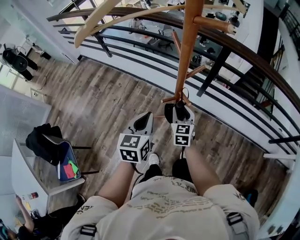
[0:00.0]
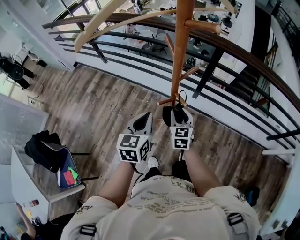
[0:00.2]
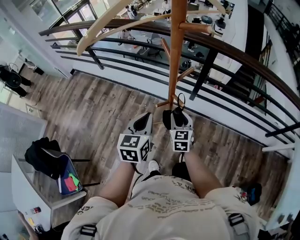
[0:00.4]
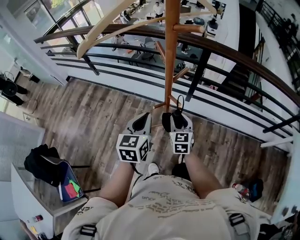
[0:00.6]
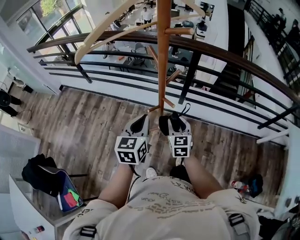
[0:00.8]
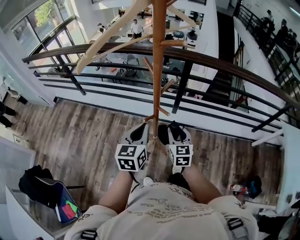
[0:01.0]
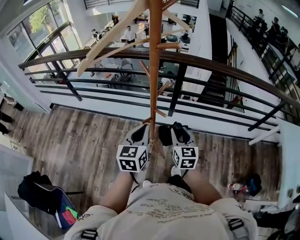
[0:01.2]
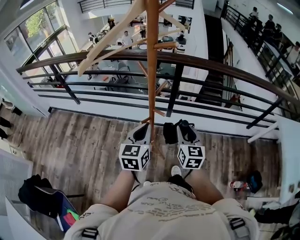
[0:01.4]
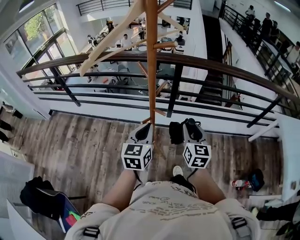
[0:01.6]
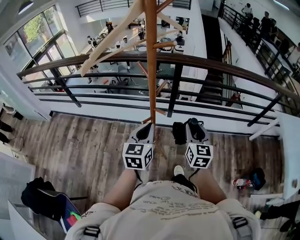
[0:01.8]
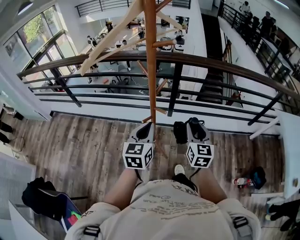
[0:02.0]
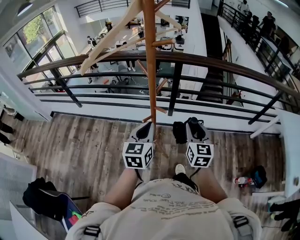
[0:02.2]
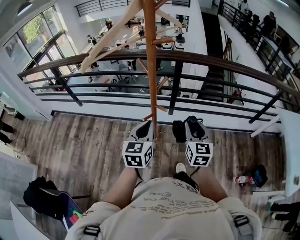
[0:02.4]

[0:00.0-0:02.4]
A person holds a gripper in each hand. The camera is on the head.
0:00.0 to 0:01.2: The left gripper is displaced upward by about 5 cm, while the right gripper moves upward, backward and to the right, roughly 15 cm.
0:01.2 to 0:02.4: The right gripper goes about 5 cm to the right and upward.

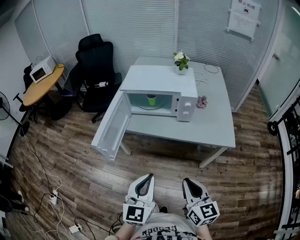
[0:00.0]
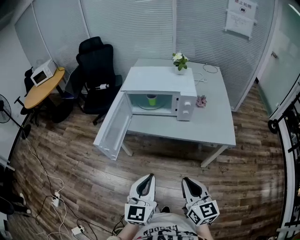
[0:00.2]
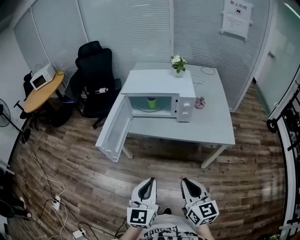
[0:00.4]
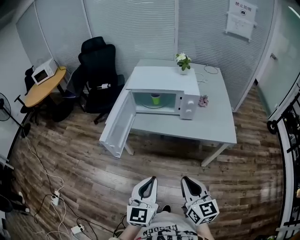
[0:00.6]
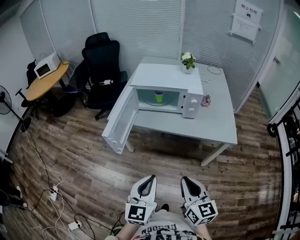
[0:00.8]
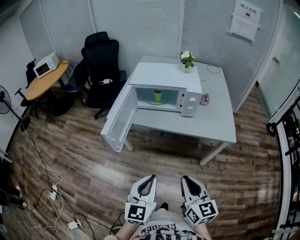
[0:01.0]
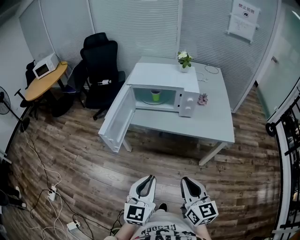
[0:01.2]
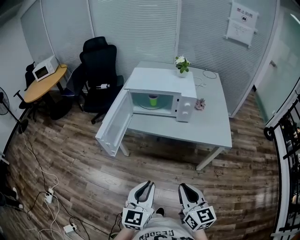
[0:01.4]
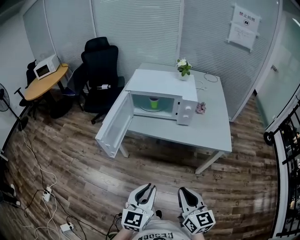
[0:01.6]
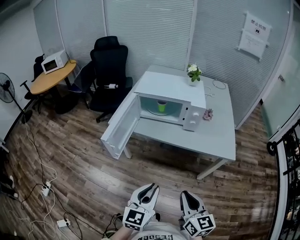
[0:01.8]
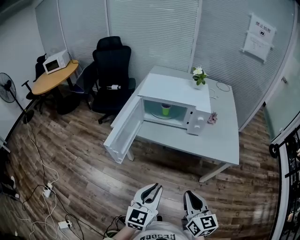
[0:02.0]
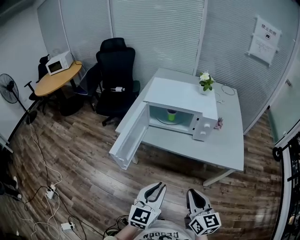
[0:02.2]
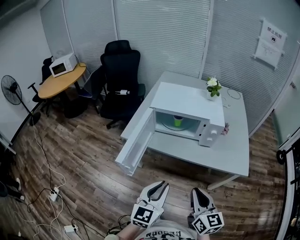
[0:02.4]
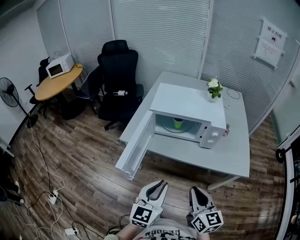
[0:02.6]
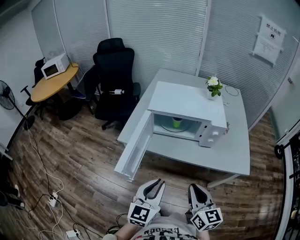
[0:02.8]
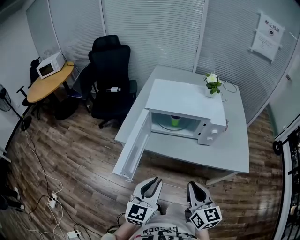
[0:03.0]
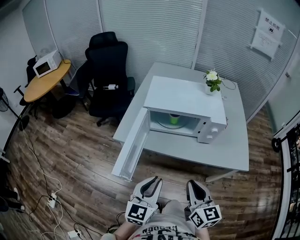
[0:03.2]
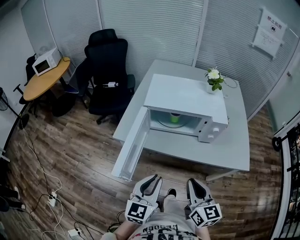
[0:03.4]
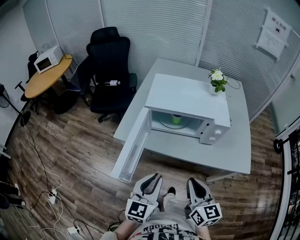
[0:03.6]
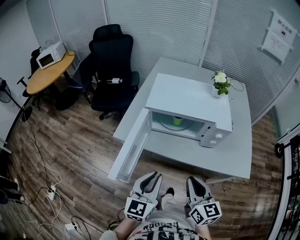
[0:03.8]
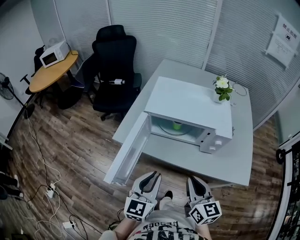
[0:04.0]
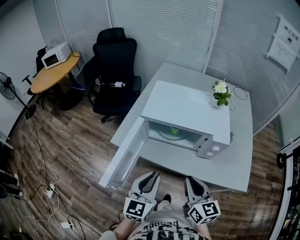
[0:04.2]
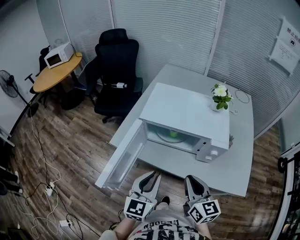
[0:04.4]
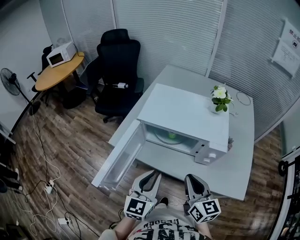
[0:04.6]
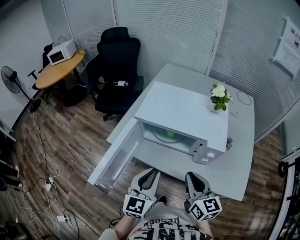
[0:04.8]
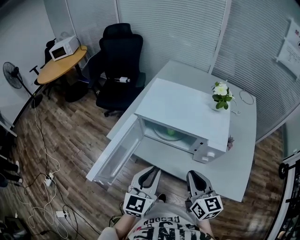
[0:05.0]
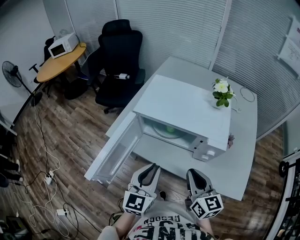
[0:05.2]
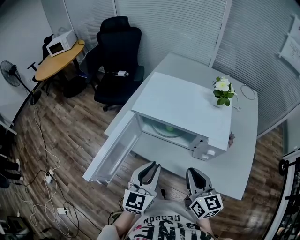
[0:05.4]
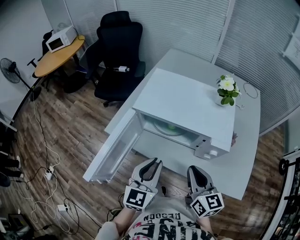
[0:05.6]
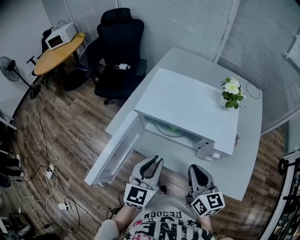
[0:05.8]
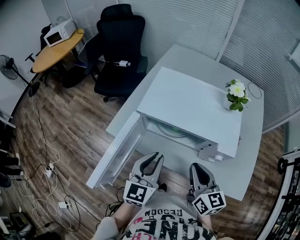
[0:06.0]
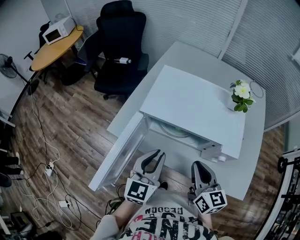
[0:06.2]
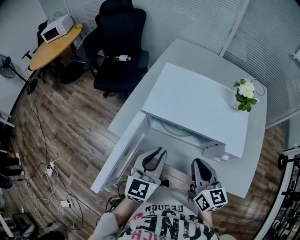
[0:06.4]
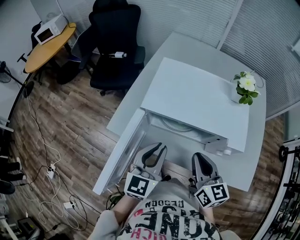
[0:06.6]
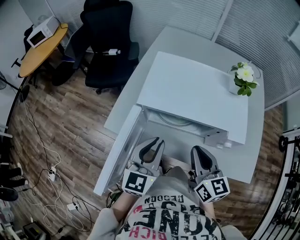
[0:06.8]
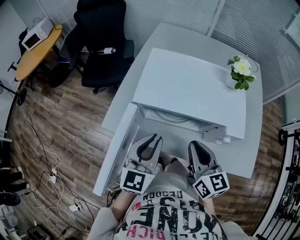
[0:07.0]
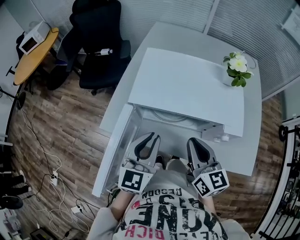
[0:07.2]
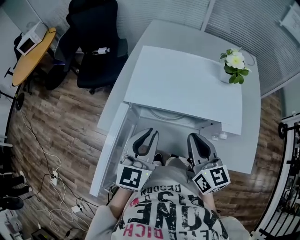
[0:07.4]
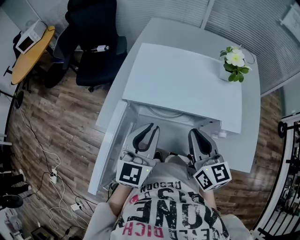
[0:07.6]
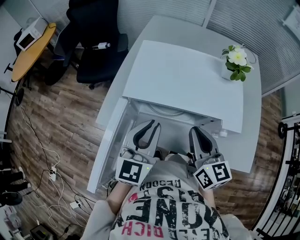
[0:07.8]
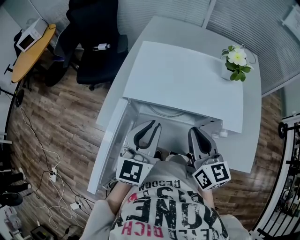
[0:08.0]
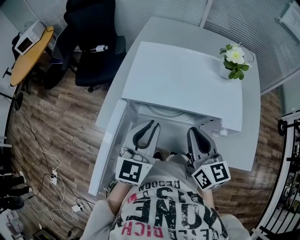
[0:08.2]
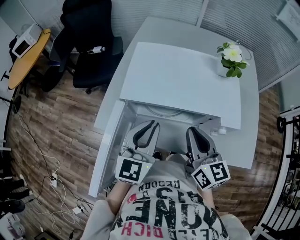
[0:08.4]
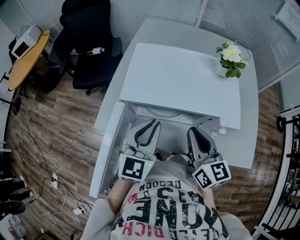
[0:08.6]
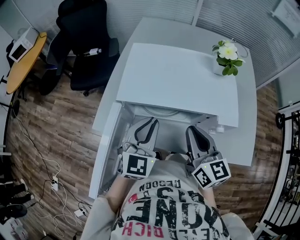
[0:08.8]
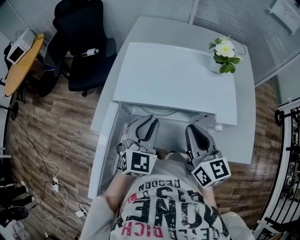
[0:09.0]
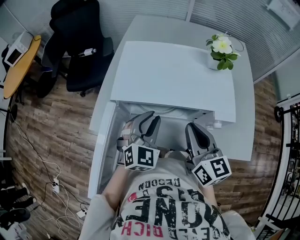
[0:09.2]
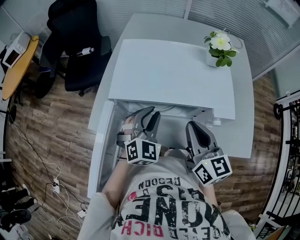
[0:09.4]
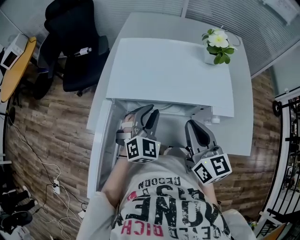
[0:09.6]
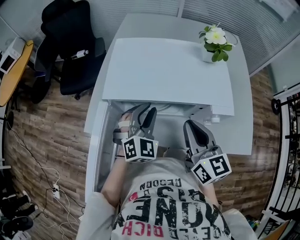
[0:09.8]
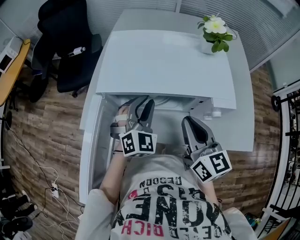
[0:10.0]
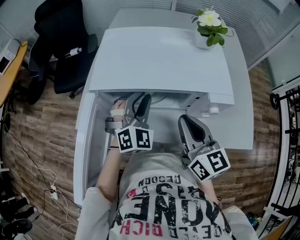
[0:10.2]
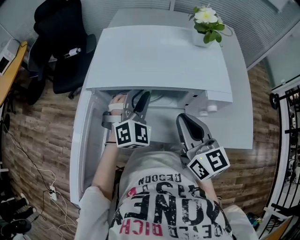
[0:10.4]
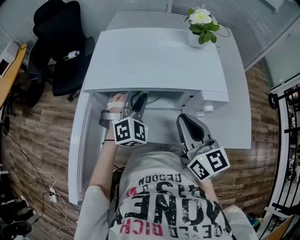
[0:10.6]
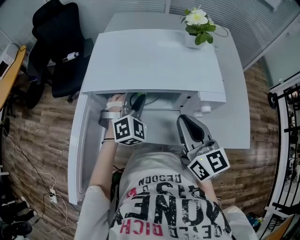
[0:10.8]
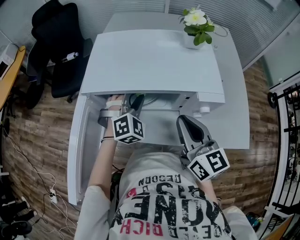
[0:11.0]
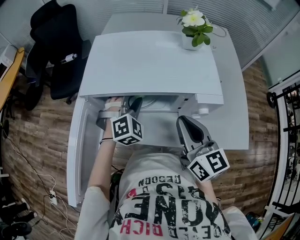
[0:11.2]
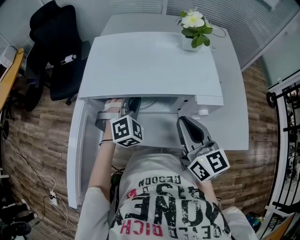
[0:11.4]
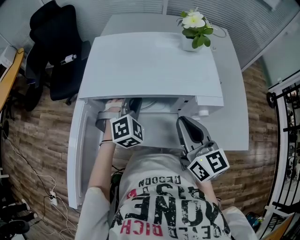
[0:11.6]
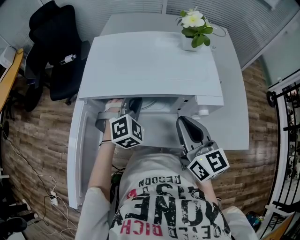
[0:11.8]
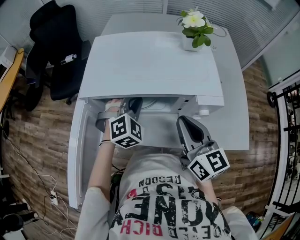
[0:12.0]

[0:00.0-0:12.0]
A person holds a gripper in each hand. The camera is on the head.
0:00.0 to 0:01.6: The grippers both shift backward by roughly 5 cm.
0:01.6 to 0:03.0: Both grippers travel together forward and to the left, roughly 20 cm.
0:03.0 to 0:04.4: Both grippers move forward, roughly 15 cm.
0:04.4 to 0:06.0: Both grippers move forward, about 10 cm.
0:06.0 to 0:07.6: The two grippers go approximately 5 cm forward.
0:07.6 to 0:09.0: The left gripper ends up roughly 5 cm from where it was, and changes its angle by roughly 30 degrees.
0:09.0 to 0:10.4: The left gripper travels forward and downward by roughly 10 cm, and changes its angle by about 30 degrees.
0:10.4 to 0:12.0: The grippers make only small movements.

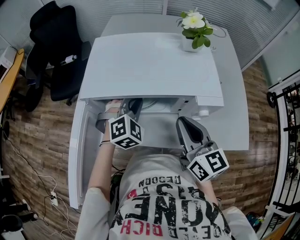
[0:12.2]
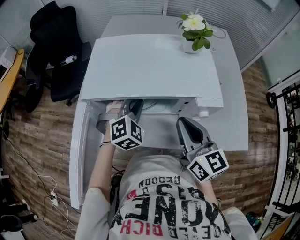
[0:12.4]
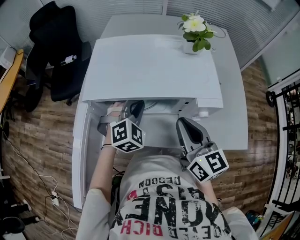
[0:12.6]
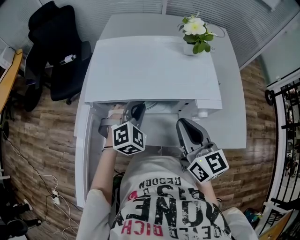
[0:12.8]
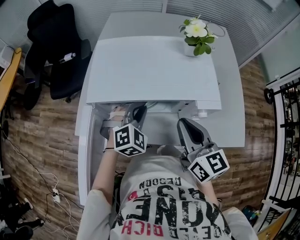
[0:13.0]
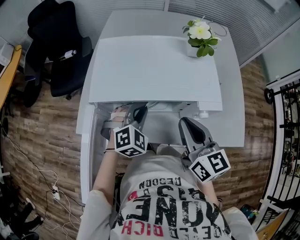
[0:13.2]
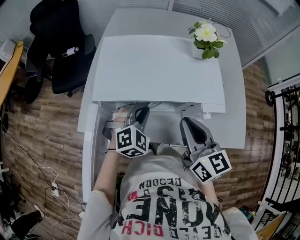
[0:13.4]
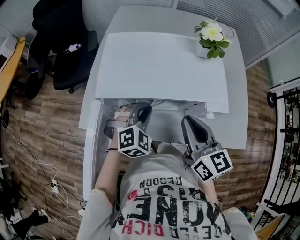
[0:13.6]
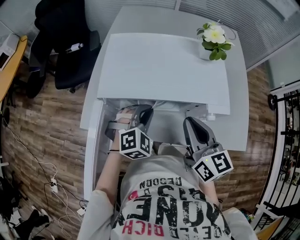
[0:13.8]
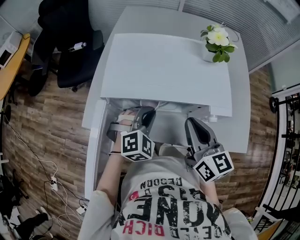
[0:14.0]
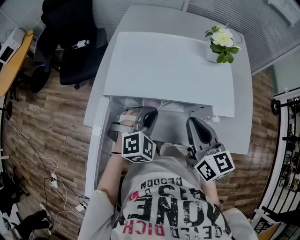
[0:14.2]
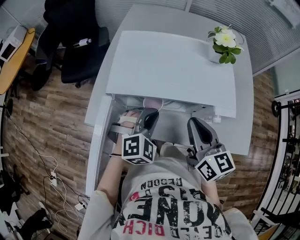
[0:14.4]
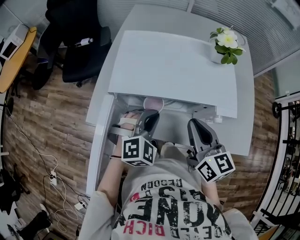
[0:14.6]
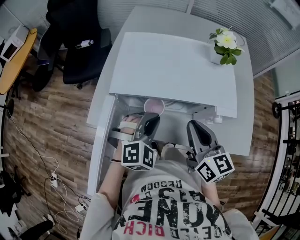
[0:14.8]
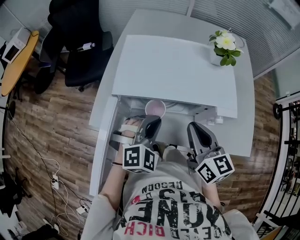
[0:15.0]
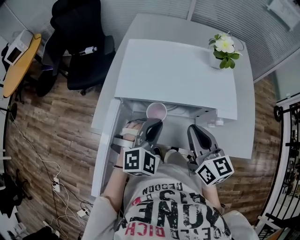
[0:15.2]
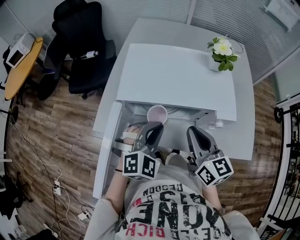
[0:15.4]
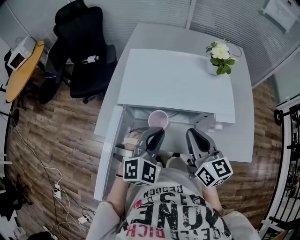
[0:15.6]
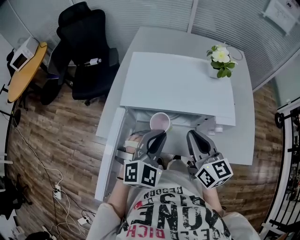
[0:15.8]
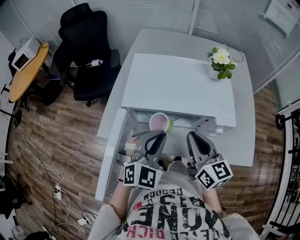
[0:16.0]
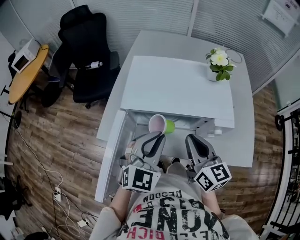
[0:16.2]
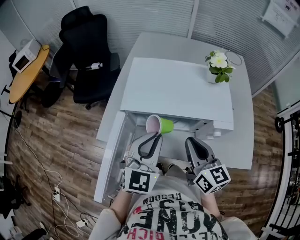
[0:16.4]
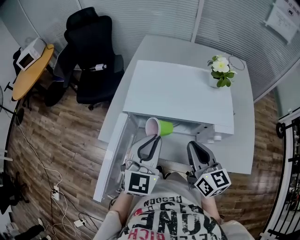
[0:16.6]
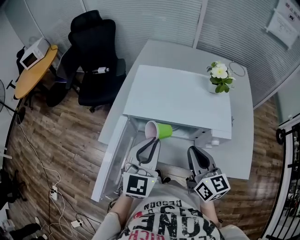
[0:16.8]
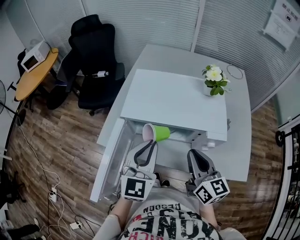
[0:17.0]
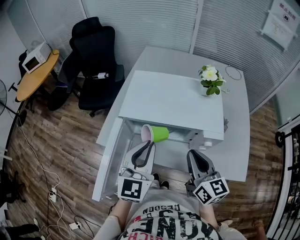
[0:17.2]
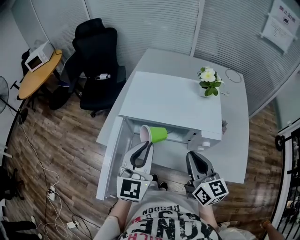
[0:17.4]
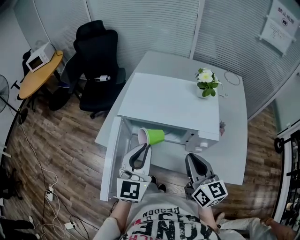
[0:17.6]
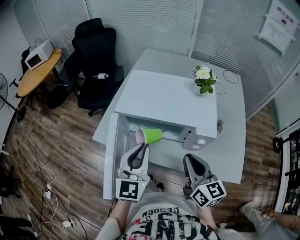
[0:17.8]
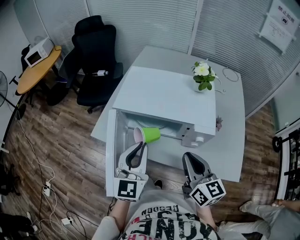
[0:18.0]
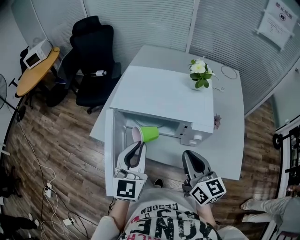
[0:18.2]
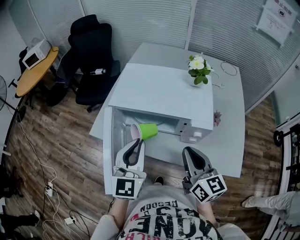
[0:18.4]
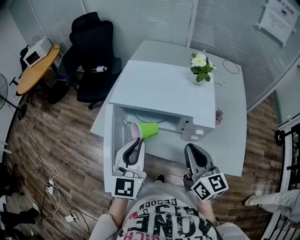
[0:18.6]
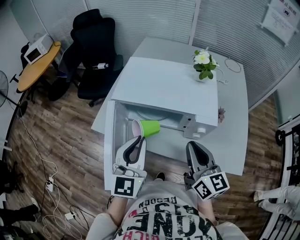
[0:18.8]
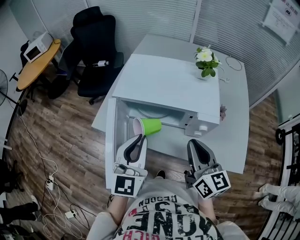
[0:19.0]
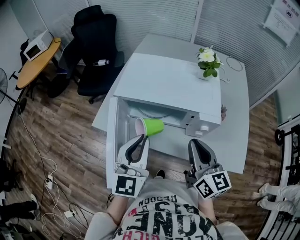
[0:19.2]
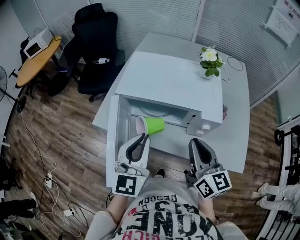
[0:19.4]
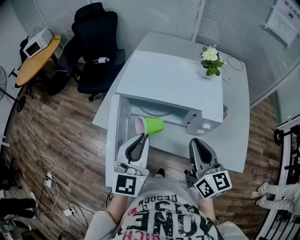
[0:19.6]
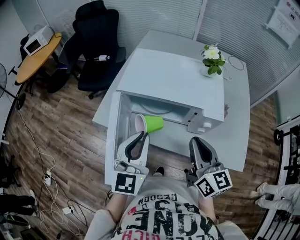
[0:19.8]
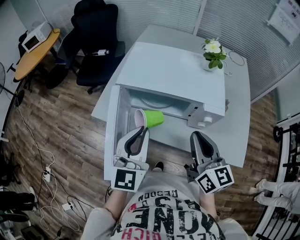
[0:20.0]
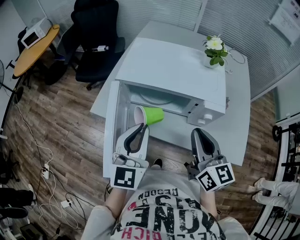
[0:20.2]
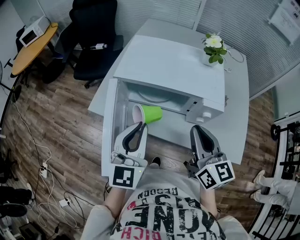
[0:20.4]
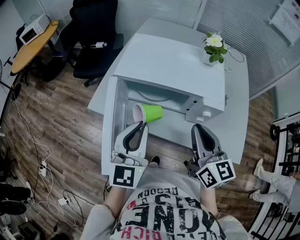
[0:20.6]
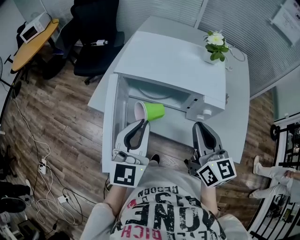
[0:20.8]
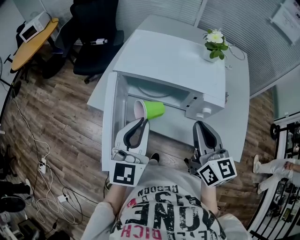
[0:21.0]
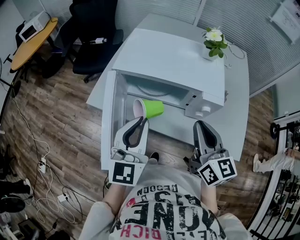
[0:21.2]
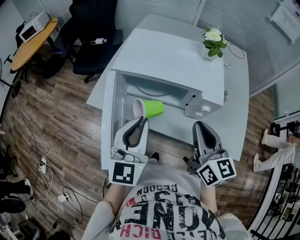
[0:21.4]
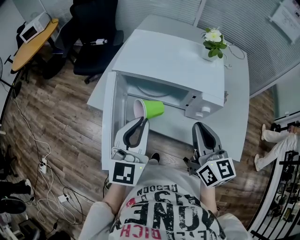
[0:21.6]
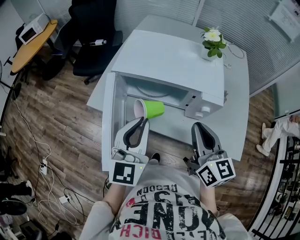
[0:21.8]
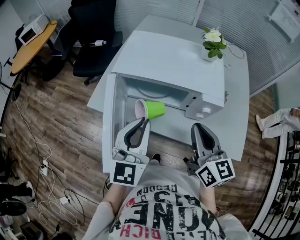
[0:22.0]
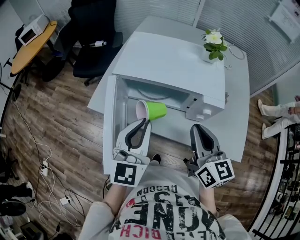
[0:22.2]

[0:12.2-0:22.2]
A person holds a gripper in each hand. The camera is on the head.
0:12.2 to 0:13.6: The grippers move only a little.
0:13.6 to 0:15.0: The left gripper shifts some 5 cm backward.
0:15.0 to 0:16.4: The left gripper shifts some 10 cm upward, and changes its angle by roughly 40 degrees.
0:16.4 to 0:18.0: The right gripper moves backward and to the right, approximately 10 cm, while the left gripper moves backward, approximately 5 cm, and rotates about 20 degrees.
0:18.0 to 0:20.8: The grippers make only small movements.
0:20.8 to 0:22.2: Neither gripper changes place.
